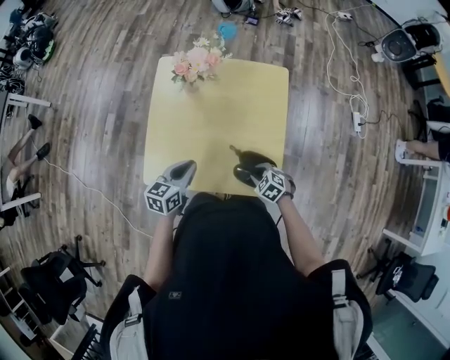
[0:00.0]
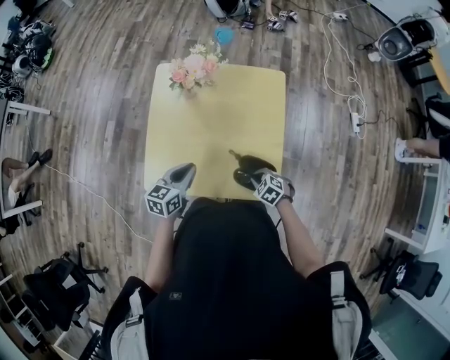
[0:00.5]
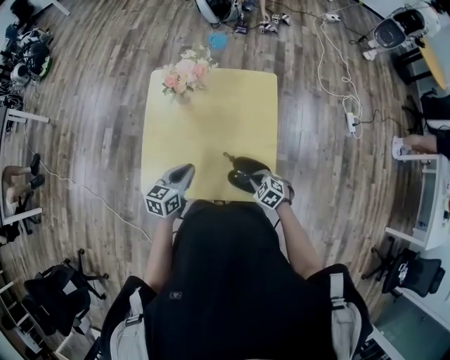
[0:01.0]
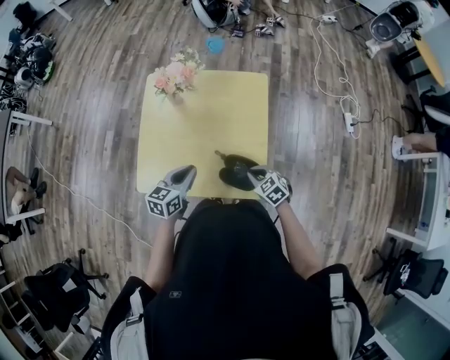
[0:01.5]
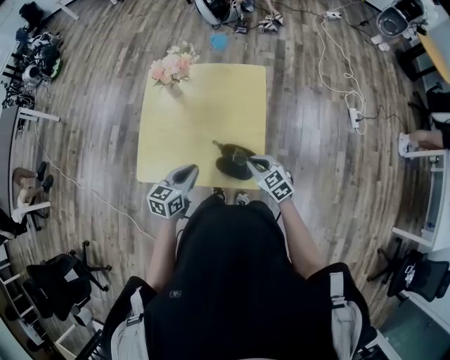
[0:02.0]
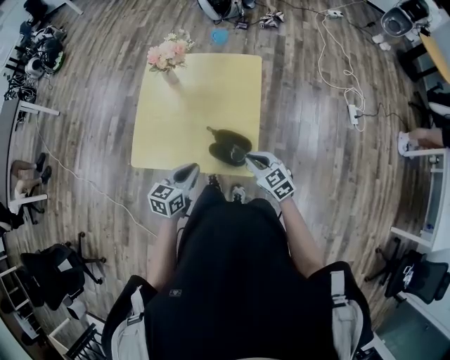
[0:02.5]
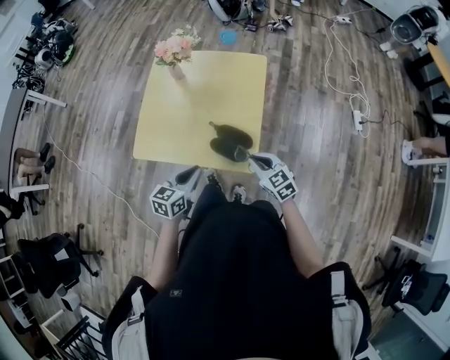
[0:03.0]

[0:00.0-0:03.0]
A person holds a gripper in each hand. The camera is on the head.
0:00.0 to 0:01.5: The left gripper moves to the right, some 5 cm, while the right gripper shifts about 10 cm upward.
0:01.5 to 0:03.0: The left gripper moves backward and to the right, some 15 cm, while the right gripper is displaced backward and upward by some 10 cm.

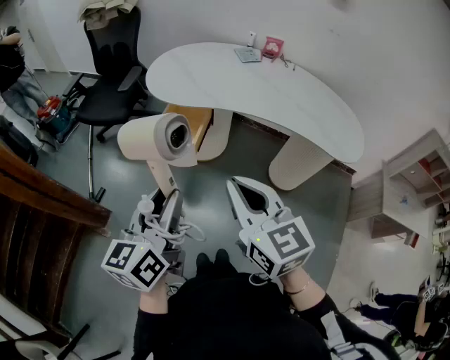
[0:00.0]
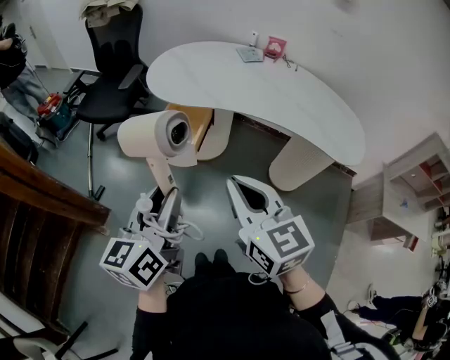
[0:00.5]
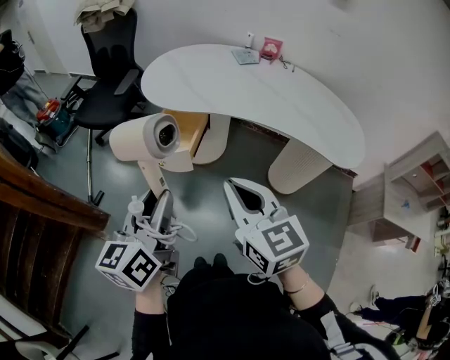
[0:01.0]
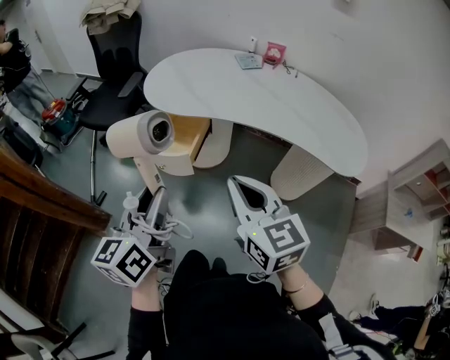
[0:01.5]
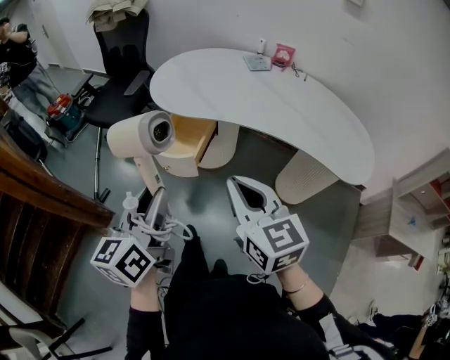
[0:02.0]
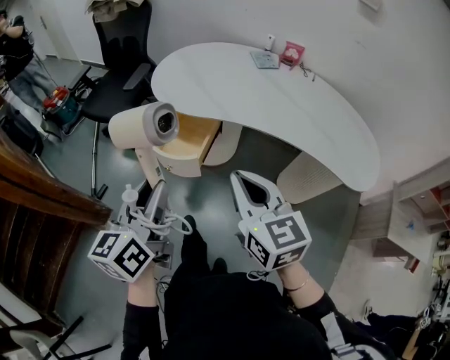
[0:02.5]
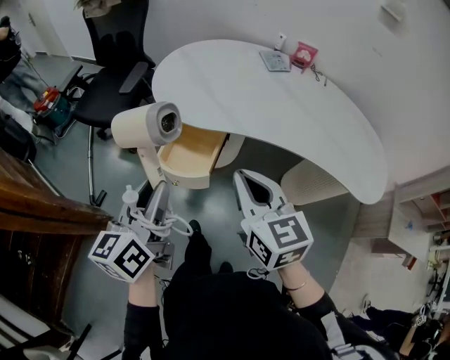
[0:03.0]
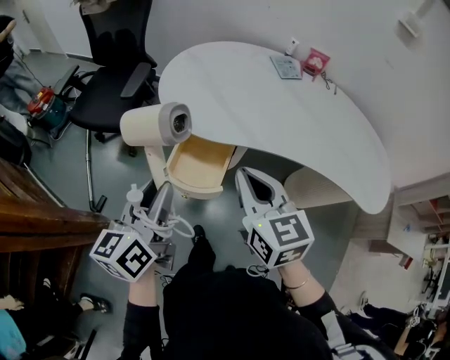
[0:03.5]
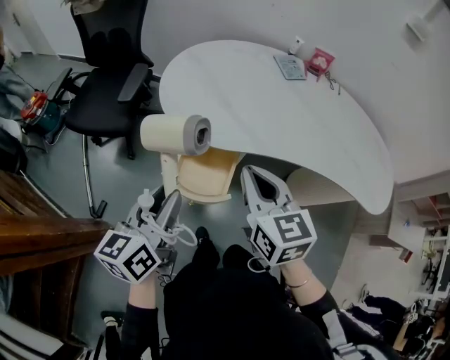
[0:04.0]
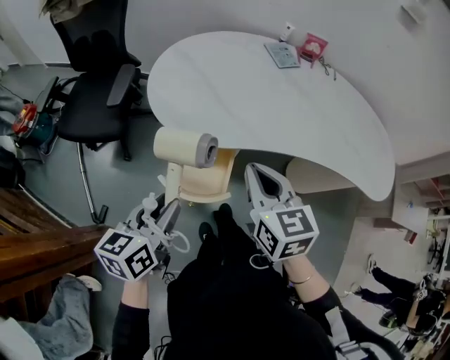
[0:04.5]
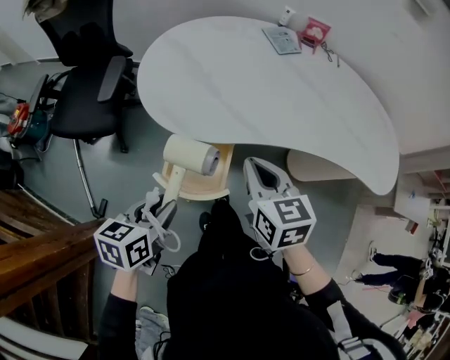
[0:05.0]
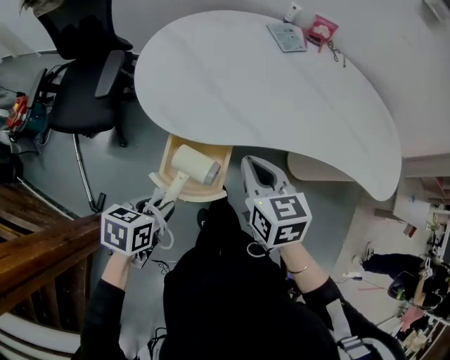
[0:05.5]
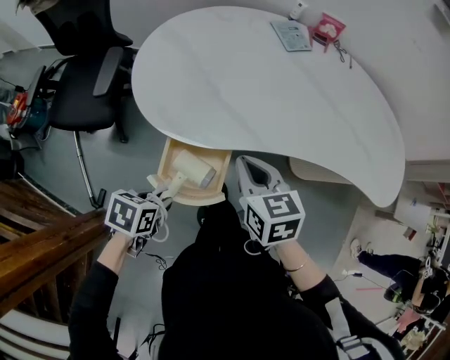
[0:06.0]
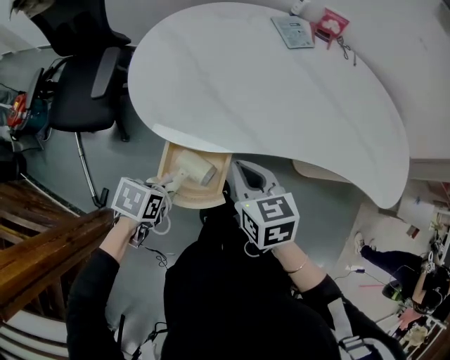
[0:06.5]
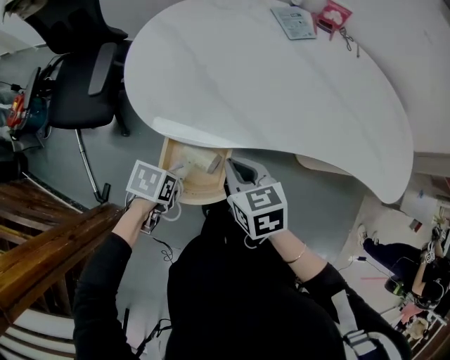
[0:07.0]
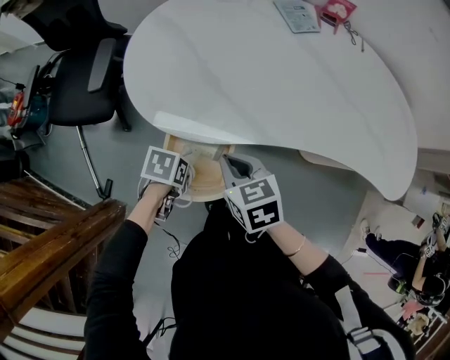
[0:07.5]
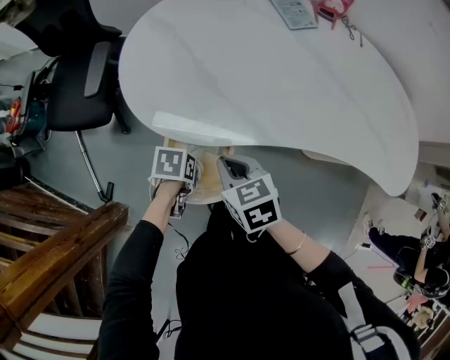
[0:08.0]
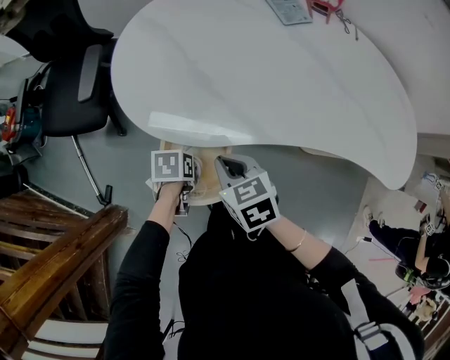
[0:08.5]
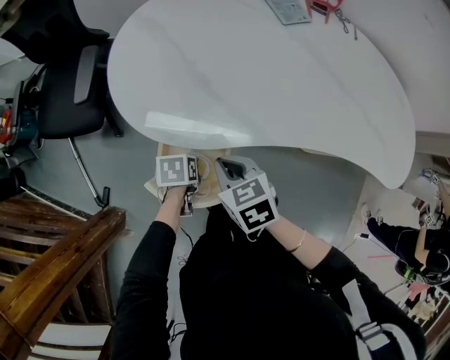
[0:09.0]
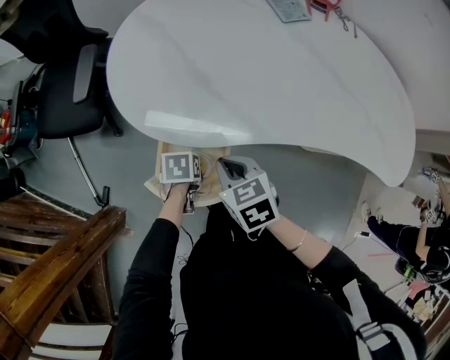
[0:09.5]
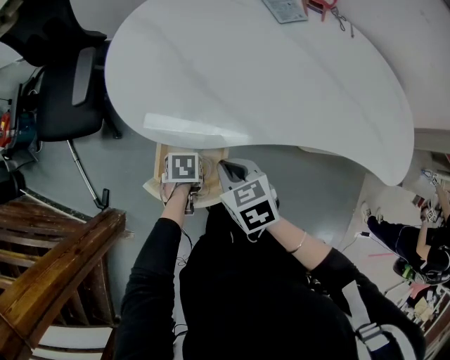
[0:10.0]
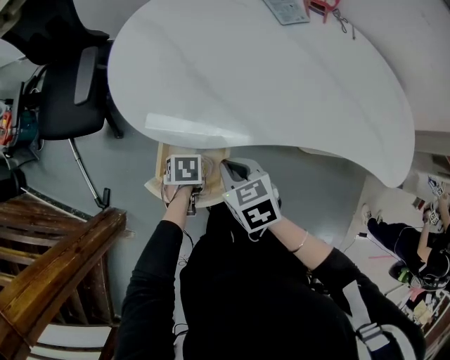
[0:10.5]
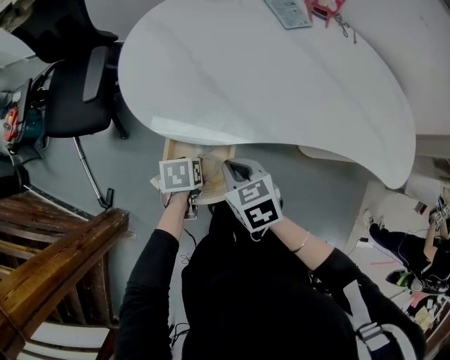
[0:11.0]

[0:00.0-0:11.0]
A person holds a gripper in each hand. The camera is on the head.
0:00.0 to 0:02.0: The right gripper heads forward, covering roughly 5 cm.
0:02.0 to 0:03.5: The two grippers go some 25 cm forward and to the left.
0:03.5 to 0:05.5: The right gripper goes some 15 cm downward and forward. The left gripper heads downward, covering some 20 cm, and tilts its fingers some 40 degrees downward.
0:05.5 to 0:07.5: The left gripper goes approximately 15 cm downward and forward, and rotates about 30 degrees, while the right gripper shifts approximately 10 cm downward.
0:07.5 to 0:09.0: The left gripper moves approximately 5 cm.
0:09.0 to 0:11.0: There are only small adjustments of the grippers.

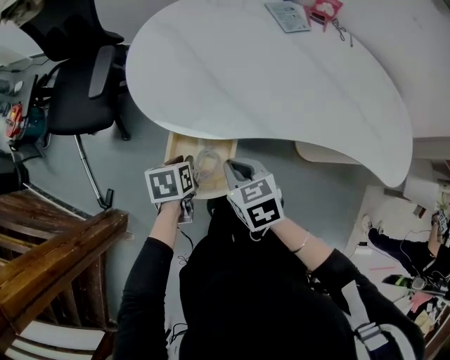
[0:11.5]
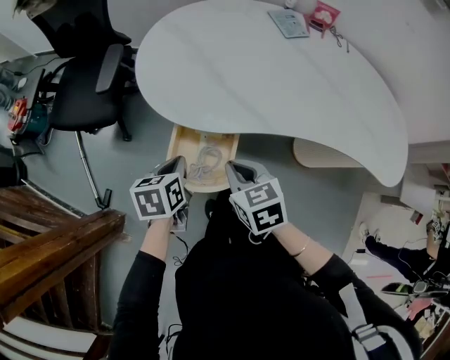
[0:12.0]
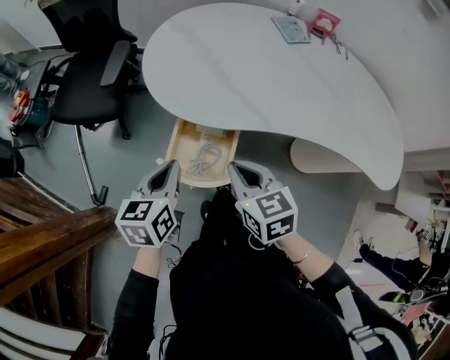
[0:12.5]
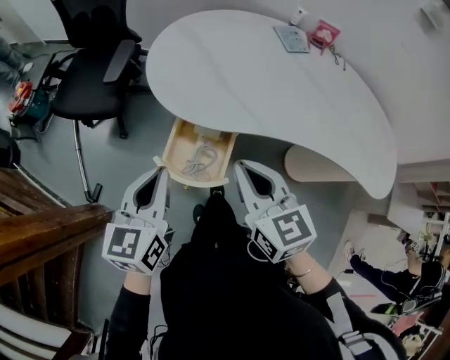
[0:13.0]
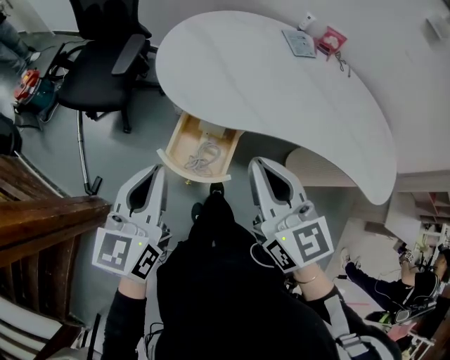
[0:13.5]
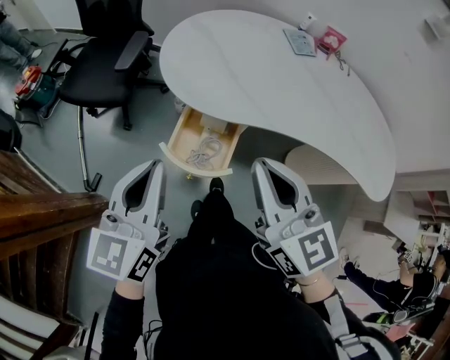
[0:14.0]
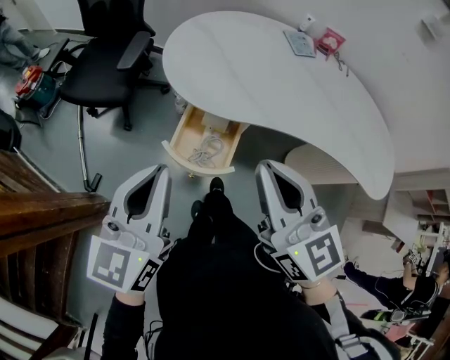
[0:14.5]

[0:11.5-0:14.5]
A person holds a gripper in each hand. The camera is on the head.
0:11.5 to 0:13.0: The right gripper is displaced upward by some 15 cm, and swivels some 30 degrees, while the left gripper travels upward and backward by roughly 25 cm, tilts its fingers about 40 degrees upward, and closes.
0:13.0 to 0:14.5: The two grippers go roughly 10 cm upward and backward.

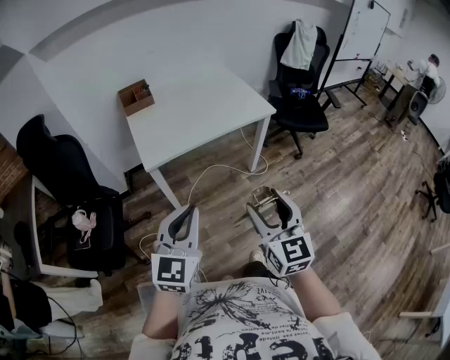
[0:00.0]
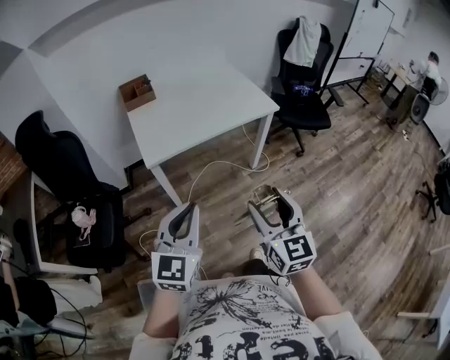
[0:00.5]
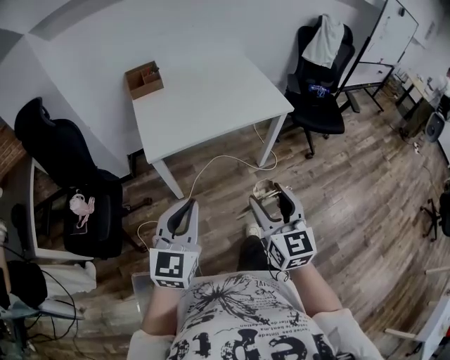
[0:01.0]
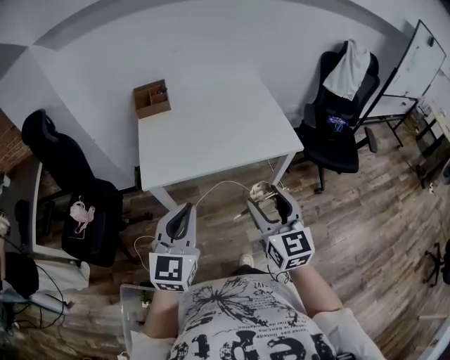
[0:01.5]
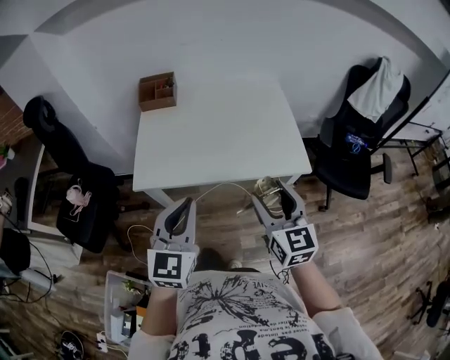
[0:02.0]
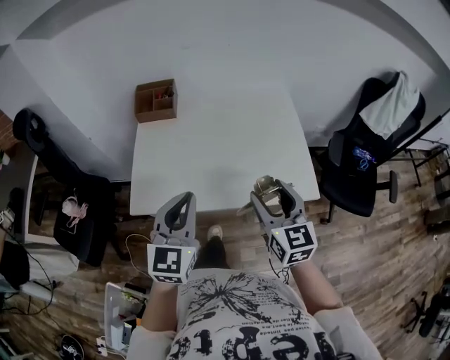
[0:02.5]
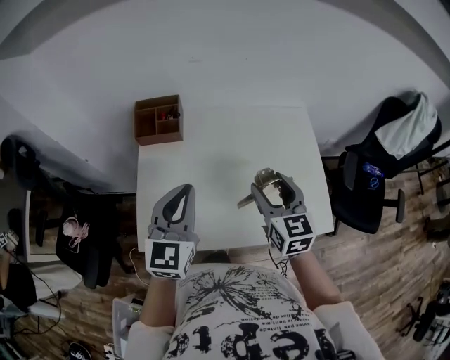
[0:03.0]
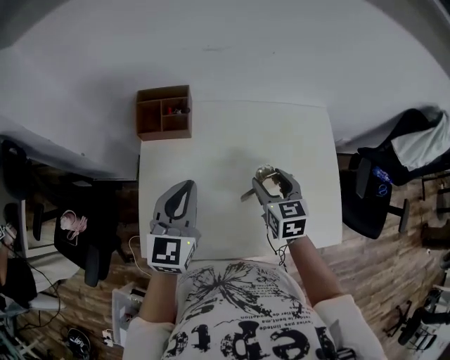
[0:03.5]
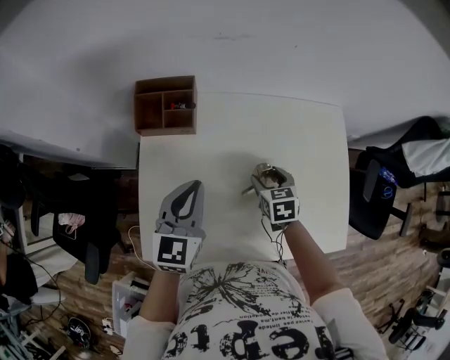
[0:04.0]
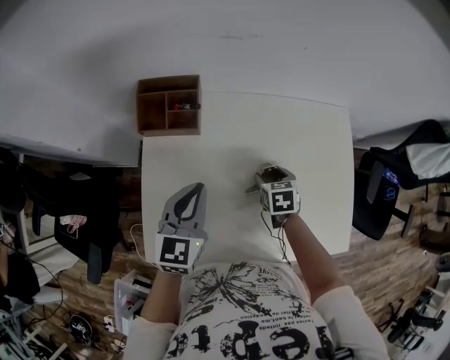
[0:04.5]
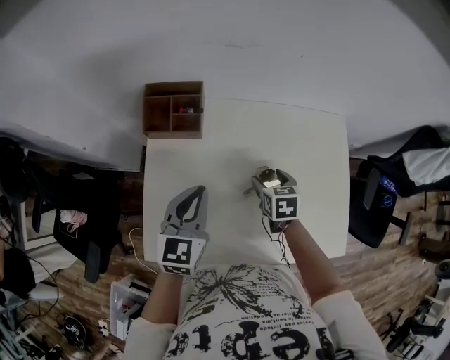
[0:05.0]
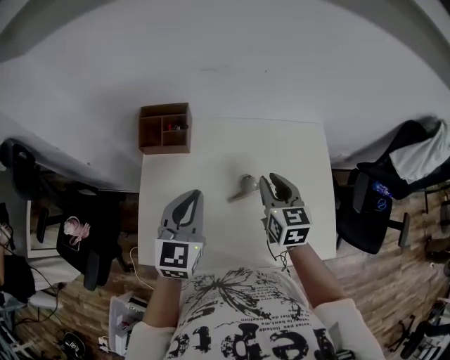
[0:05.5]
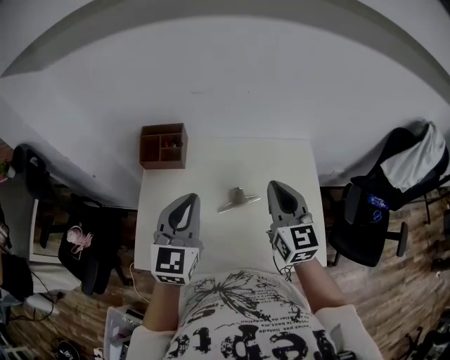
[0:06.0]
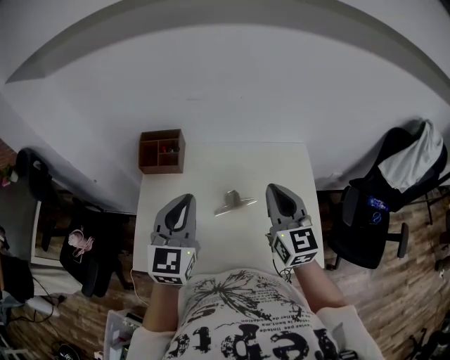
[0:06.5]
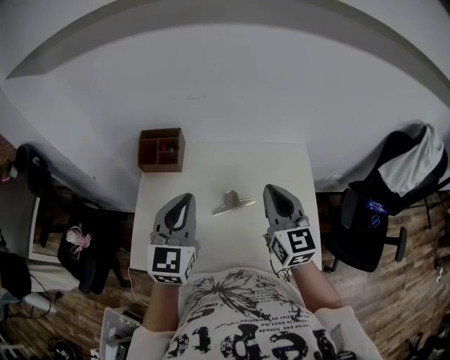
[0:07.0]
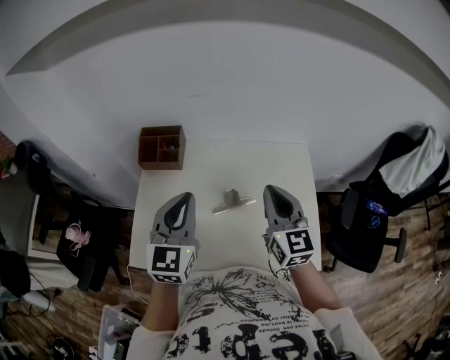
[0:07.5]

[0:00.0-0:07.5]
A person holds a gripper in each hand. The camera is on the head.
0:00.0 to 0:02.0: The grippers both shift forward by about 35 cm. The left gripper swivels approximately 20 degrees. The right gripper rotates roughly 20 degrees.
0:02.0 to 0:04.0: The pair of grippers is taken forward, roughly 50 cm. The right gripper goes some 25 cm downward, and points its fingers approximately 40 degrees further downward.
0:04.0 to 0:05.5: The left gripper is displaced upward by about 5 cm. Meanwhile the right gripper goes some 15 cm upward, changes its angle by roughly 30 degrees, and closes its fingers.
0:05.5 to 0:07.5: The left gripper heads upward, covering about 10 cm, while the right gripper is displaced upward, to the right and backward by approximately 15 cm, and swivels about 20 degrees.

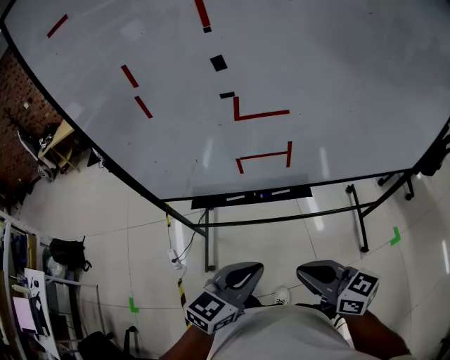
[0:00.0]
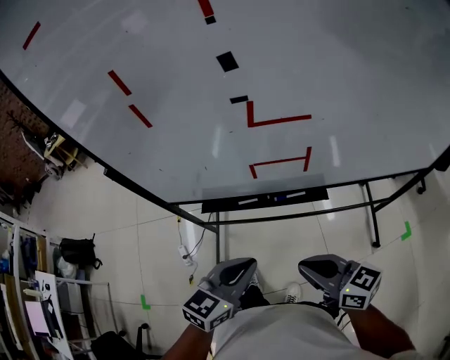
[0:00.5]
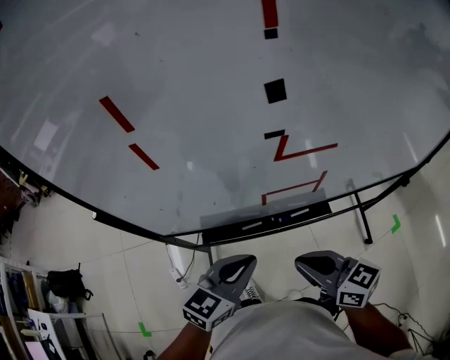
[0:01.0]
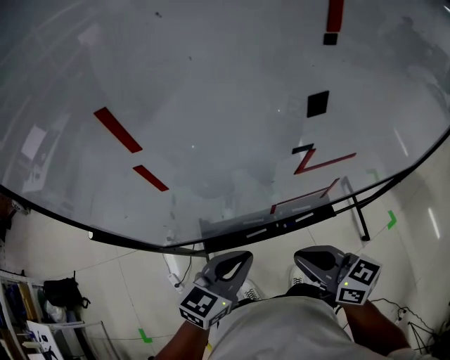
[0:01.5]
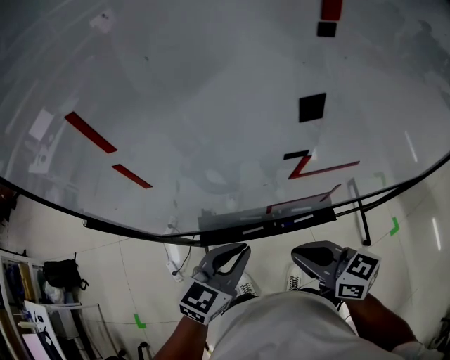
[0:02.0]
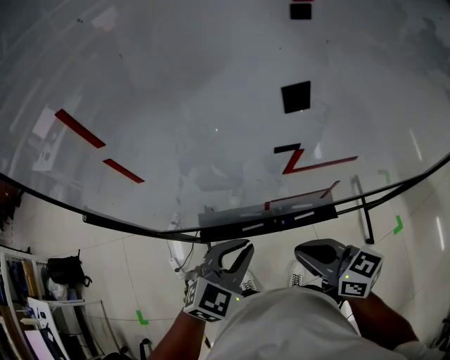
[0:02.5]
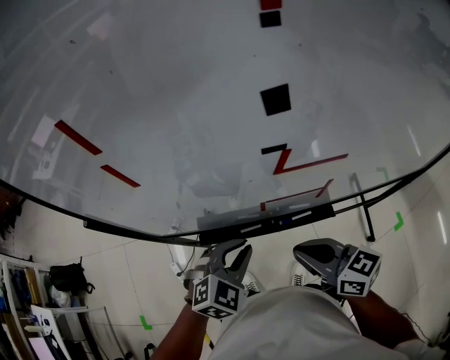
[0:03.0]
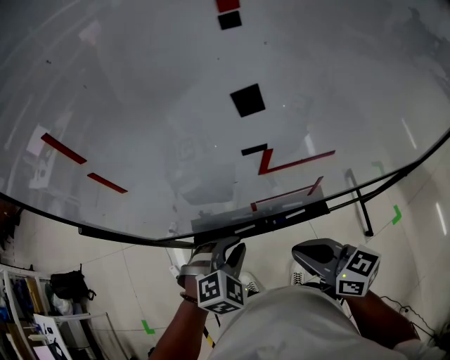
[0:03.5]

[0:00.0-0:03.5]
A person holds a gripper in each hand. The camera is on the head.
0:00.0 to 0:02.0: Both grippers move forward and to the left, approximately 20 cm.
0:02.0 to 0:03.5: The left gripper shifts approximately 5 cm downward, and changes its angle by roughly 50 degrees.
